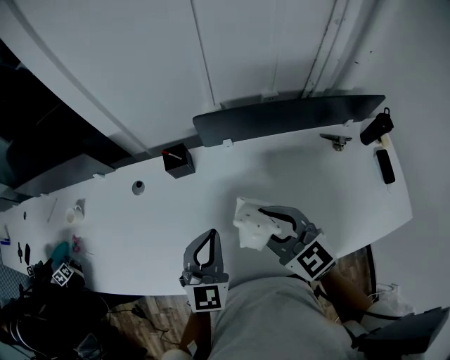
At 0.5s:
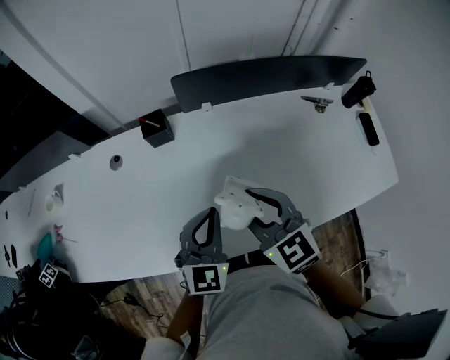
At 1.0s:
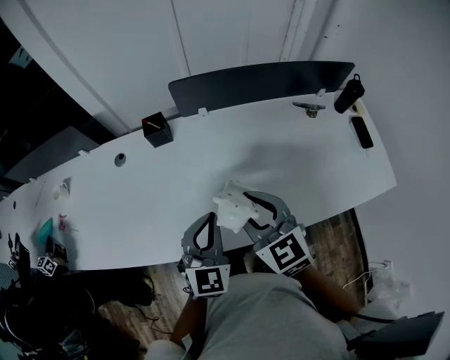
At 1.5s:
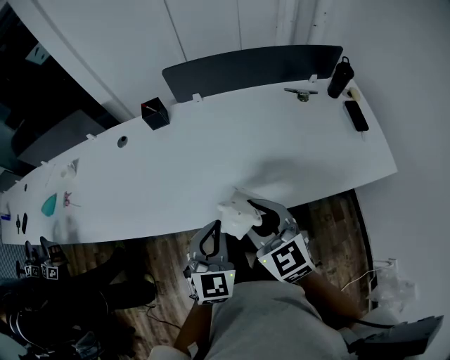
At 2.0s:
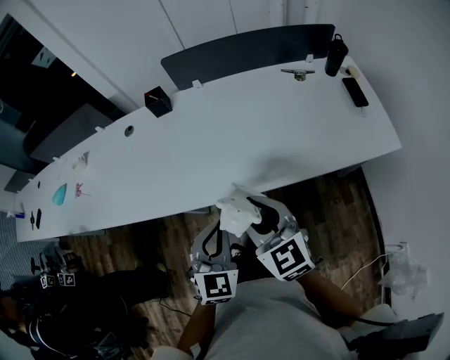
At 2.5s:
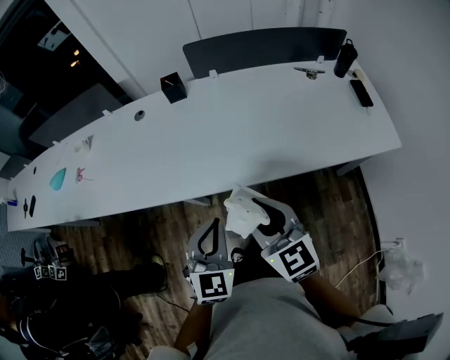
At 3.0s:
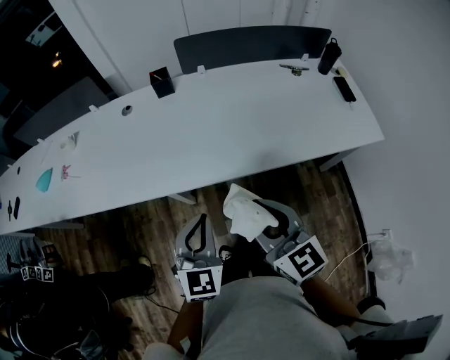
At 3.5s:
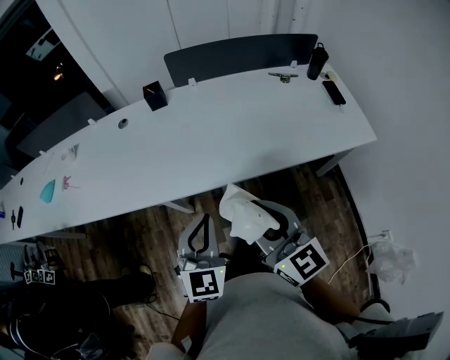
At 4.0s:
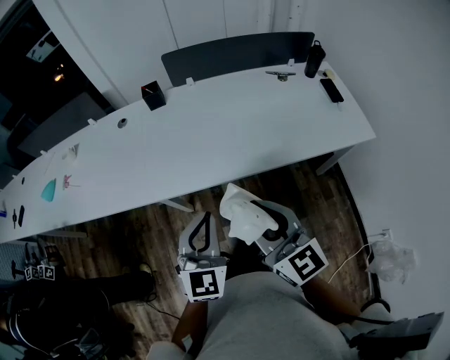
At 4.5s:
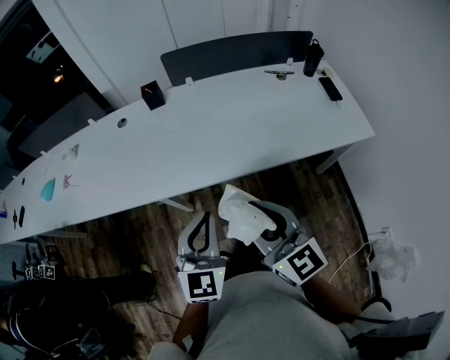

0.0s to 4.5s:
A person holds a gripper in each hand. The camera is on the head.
0.0s to 2.0s: The grippers both shift backward by about 30 cm.
2.0s to 4.5s: Both grippers travel together backward and upward, approximately 10 cm.

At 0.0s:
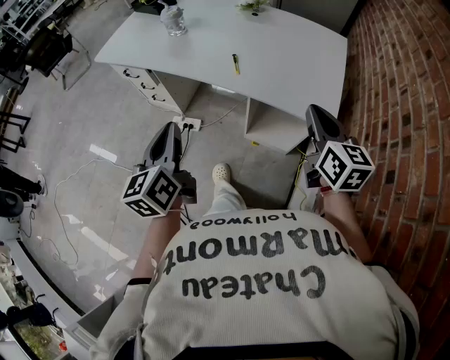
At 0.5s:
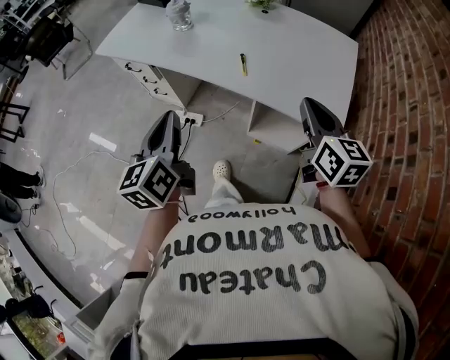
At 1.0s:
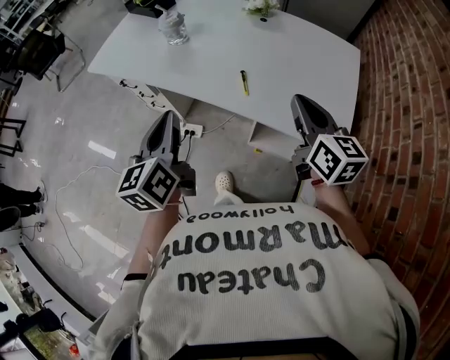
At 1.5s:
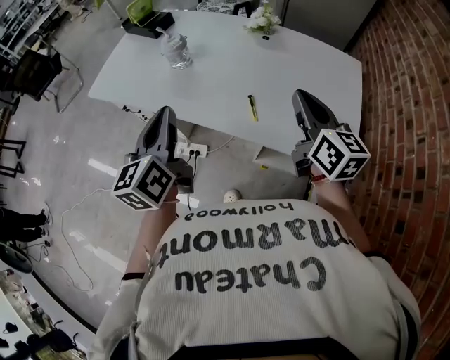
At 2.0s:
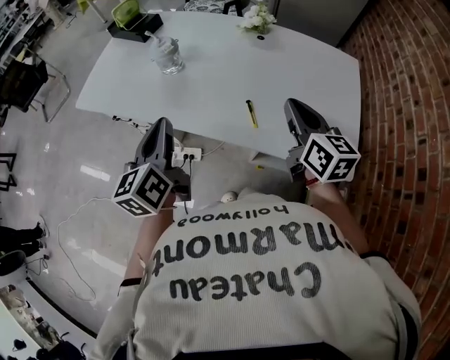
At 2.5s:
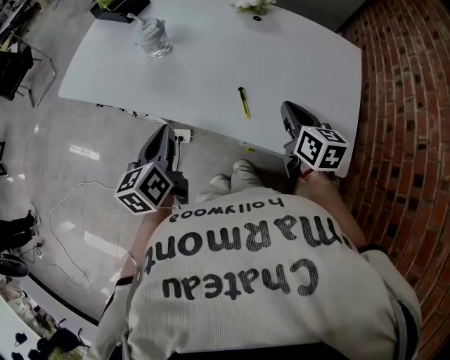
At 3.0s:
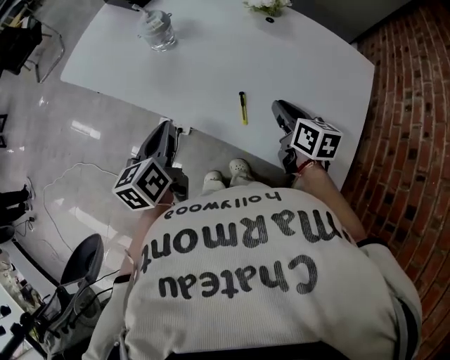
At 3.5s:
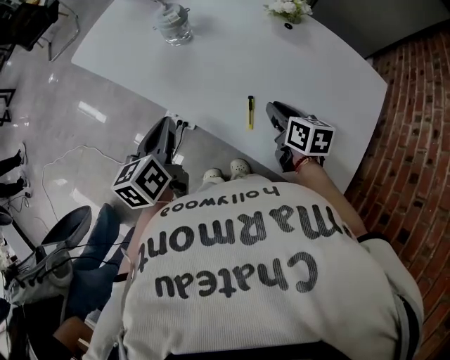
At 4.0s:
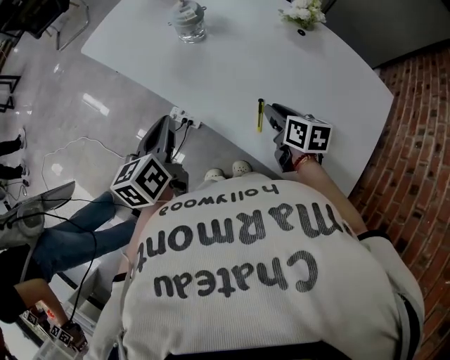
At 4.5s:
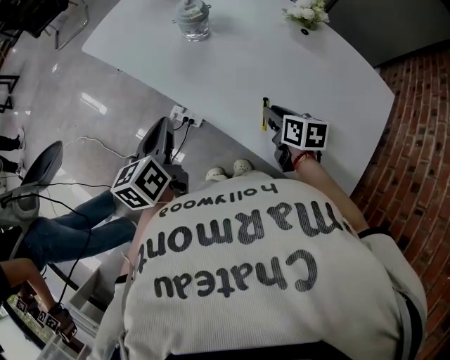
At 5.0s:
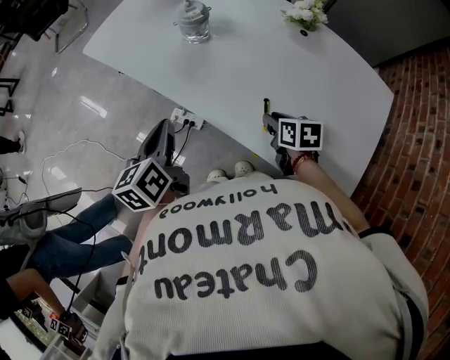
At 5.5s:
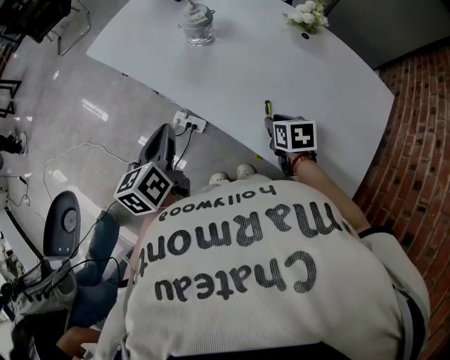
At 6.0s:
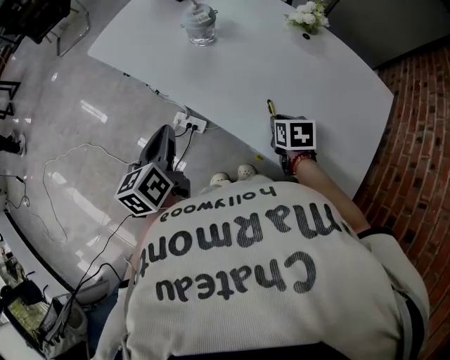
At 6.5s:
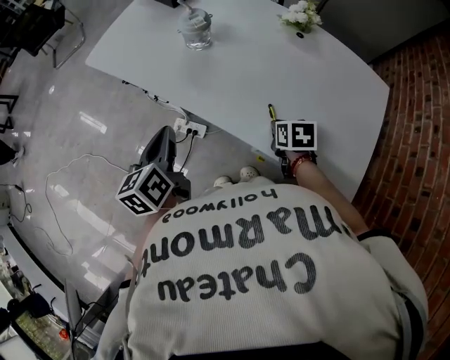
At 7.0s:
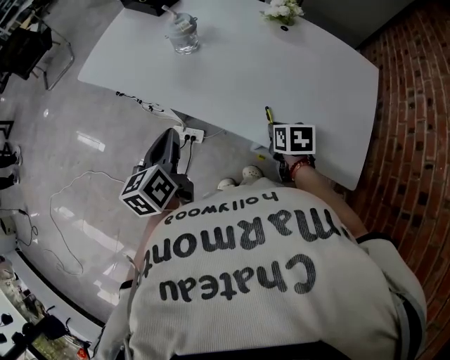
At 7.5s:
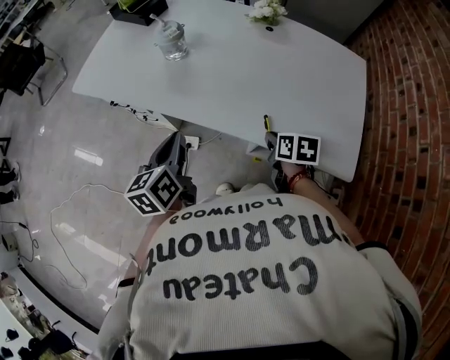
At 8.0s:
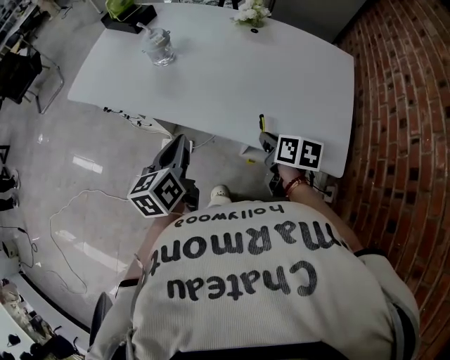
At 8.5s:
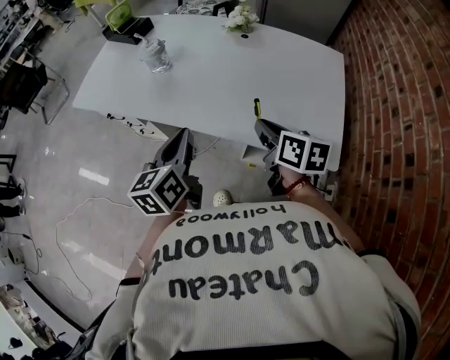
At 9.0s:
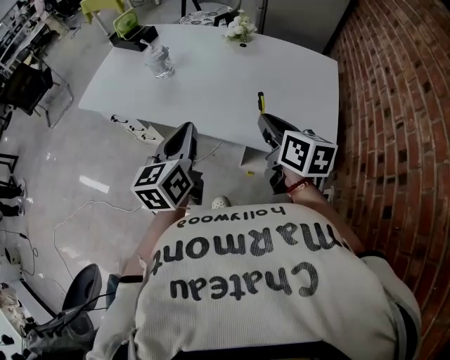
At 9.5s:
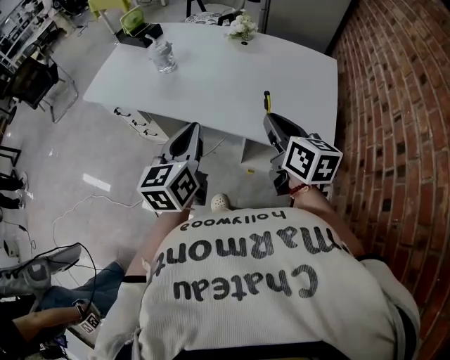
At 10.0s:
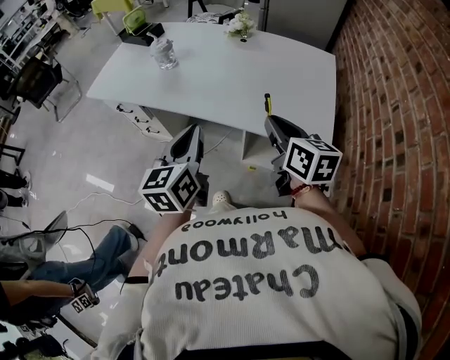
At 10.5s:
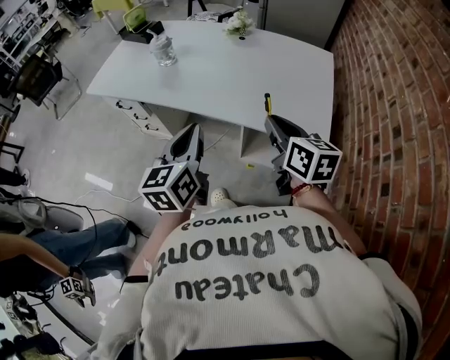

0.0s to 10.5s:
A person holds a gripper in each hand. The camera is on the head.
0.0s to 2.0s: The two grippers go some 25 cm forward.
2.0s to 4.0s: The left gripper shifts approximately 10 cm downward, and changes its angle by some 20 degrees. Meanwhile the right gripper shifts roughly 20 cm downward and forward, changes its angle by roughly 40 degrees, and opens its fingers.
4.0s to 6.5s: The left gripper moves to the left, roughly 5 cm. Meanwhile the right gripper moves some 5 cm, and changes its angle by about 20 degrees.
6.5s to 8.5s: The right gripper heads upward and backward, covering some 20 cm, and swivels roughly 40 degrees, while the left gripper goes approximately 15 cm to the right and upward, and rotates roughly 20 degrees.
8.5s to 10.5s: The right gripper goes approximately 15 cm backward and upward, while the left gripper goes some 10 cm backward.

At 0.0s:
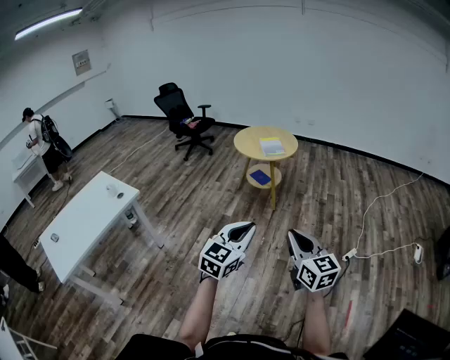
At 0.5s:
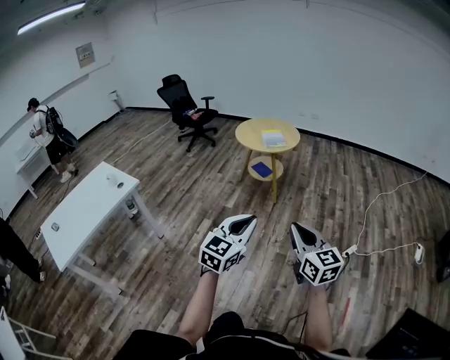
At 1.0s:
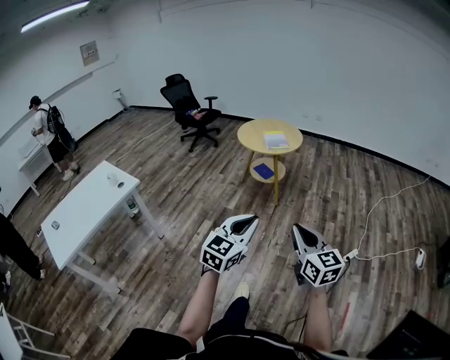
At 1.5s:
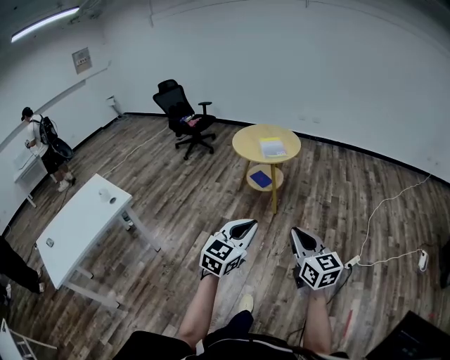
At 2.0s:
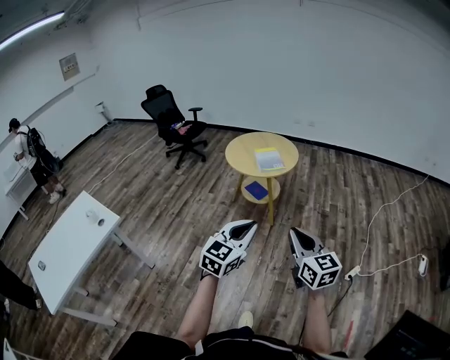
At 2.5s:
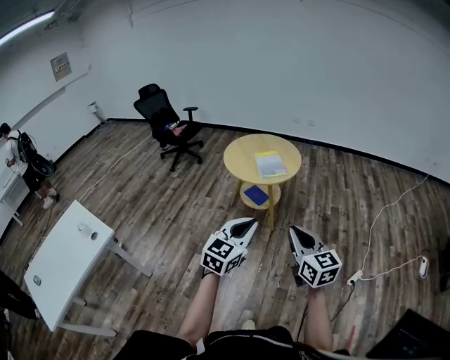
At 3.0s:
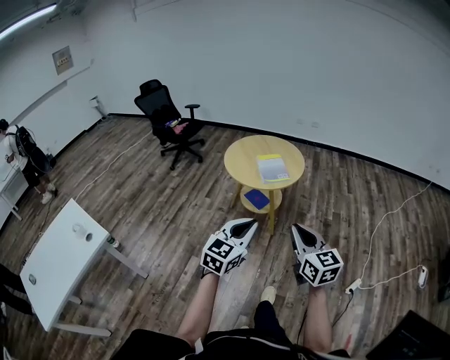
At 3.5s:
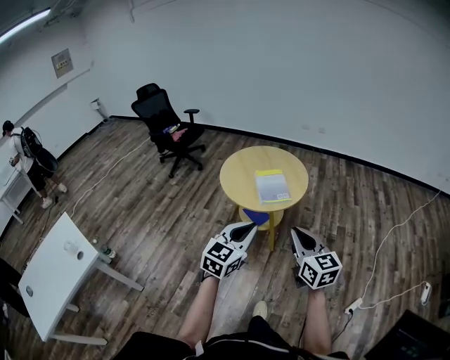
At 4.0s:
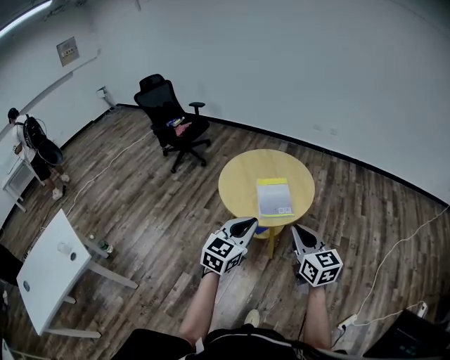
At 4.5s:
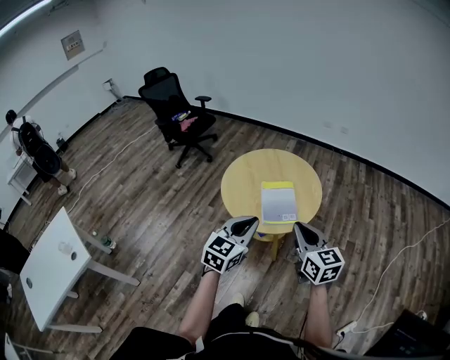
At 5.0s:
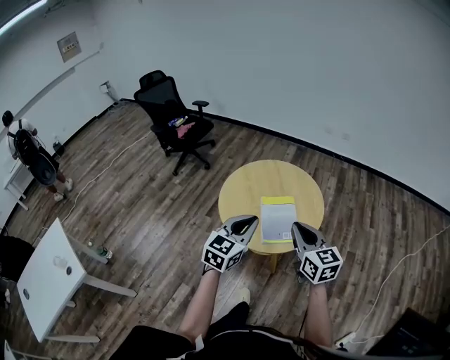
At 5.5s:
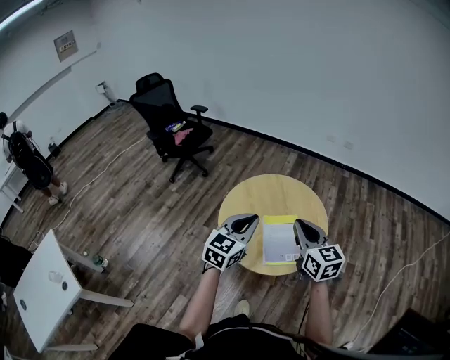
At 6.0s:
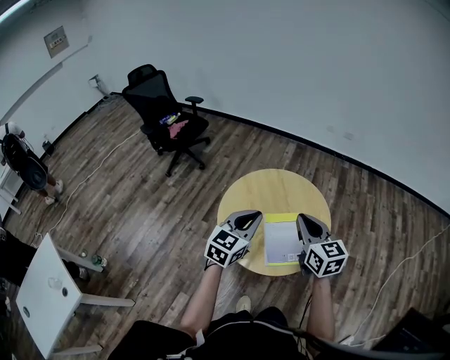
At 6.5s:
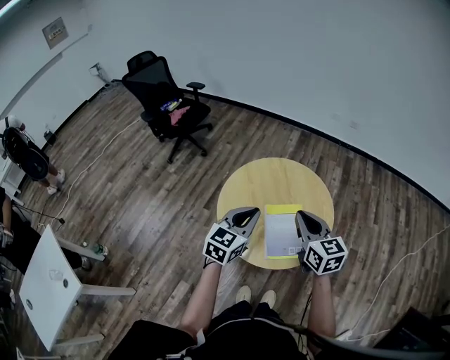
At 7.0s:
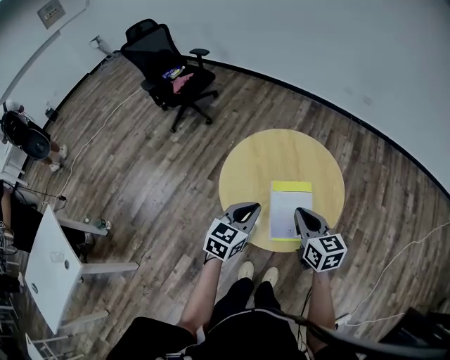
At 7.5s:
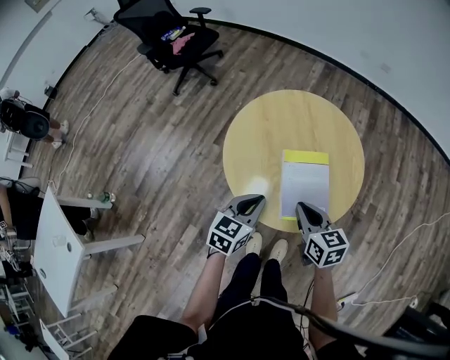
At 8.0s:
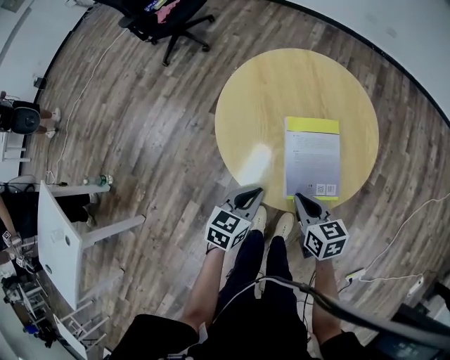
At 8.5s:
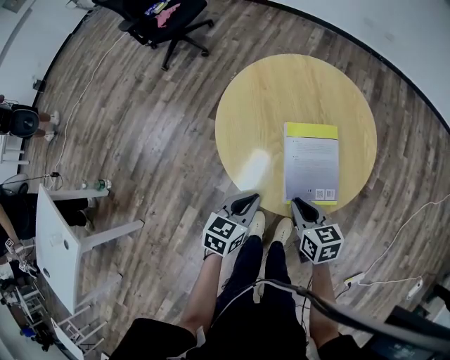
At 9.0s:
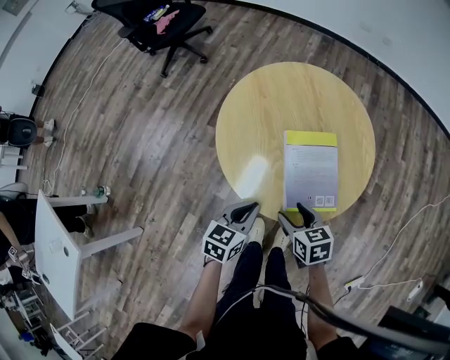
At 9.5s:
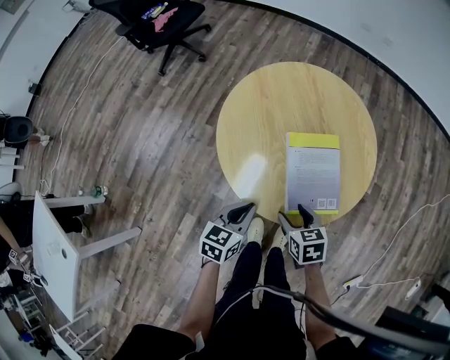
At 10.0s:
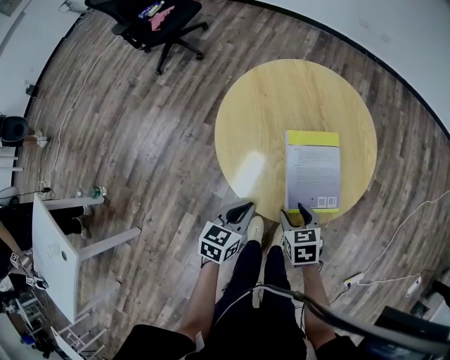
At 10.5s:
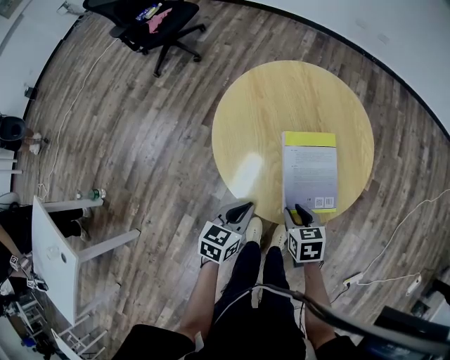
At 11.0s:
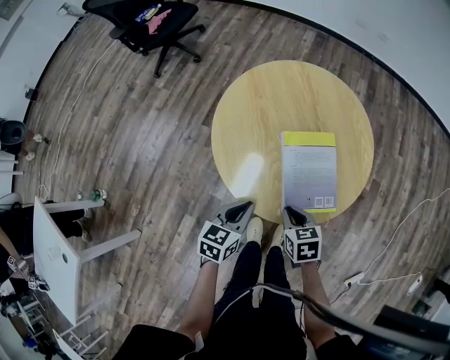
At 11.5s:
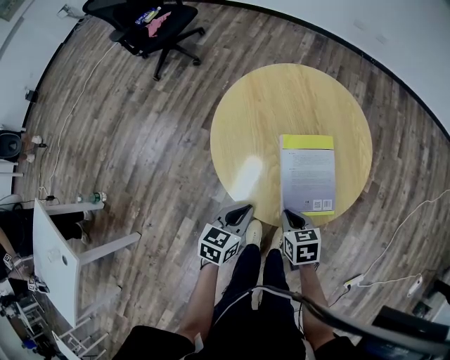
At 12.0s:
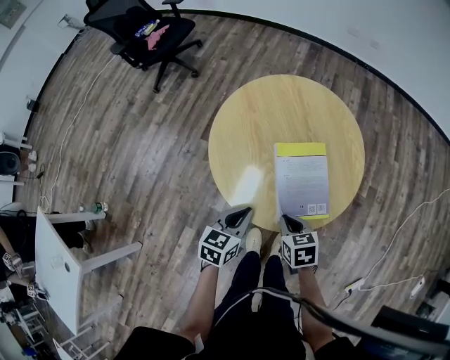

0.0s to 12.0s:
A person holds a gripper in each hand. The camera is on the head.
0.0s to 2.0s: The grippers both shift forward by approximately 25 cm.
2.0s to 4.0s: The two grippers travel together, forward, approximately 50 cm.
4.0s to 6.0s: Both grippers travel together forward, approximately 30 cm.
6.0s to 8.0s: The two grippers go approximately 30 cm downward. The left gripper changes its angle by roughly 30 degrees, while the right gripper swivels about 30 degrees.
8.0s to 10.0s: The right gripper goes about 5 cm downward, turns by roughly 20 degrees, and opens up.
10.0s to 12.0s: The right gripper closes.
